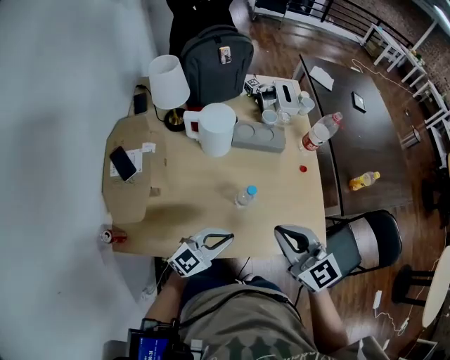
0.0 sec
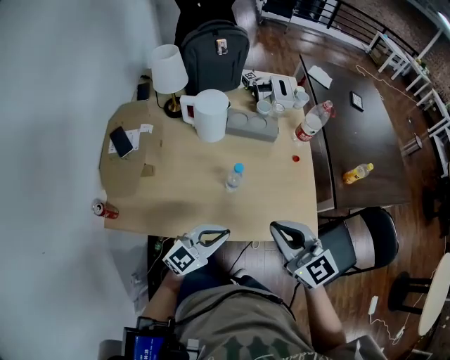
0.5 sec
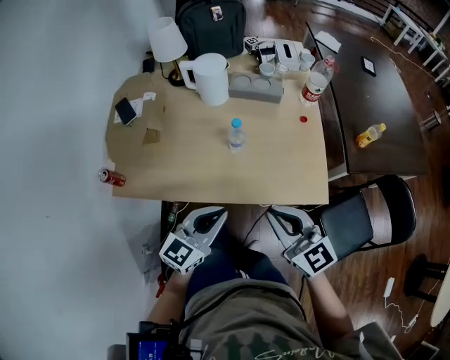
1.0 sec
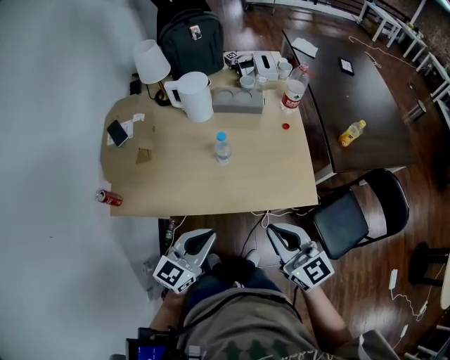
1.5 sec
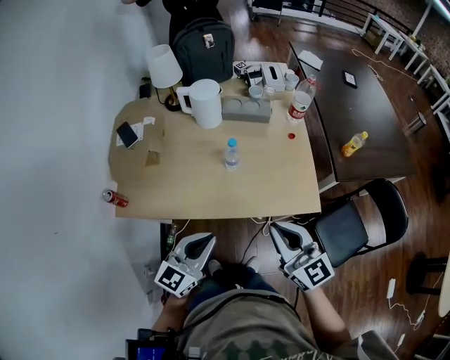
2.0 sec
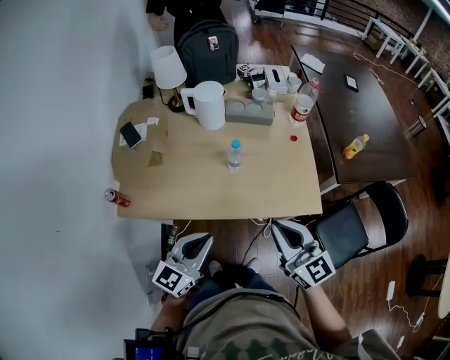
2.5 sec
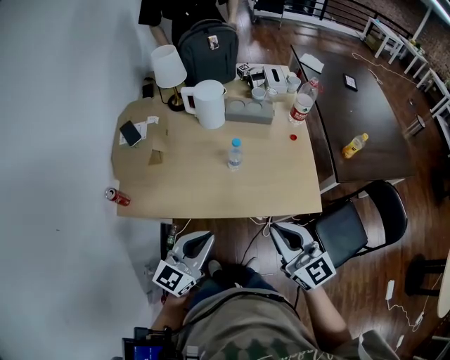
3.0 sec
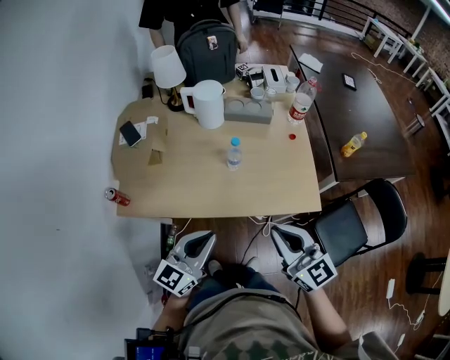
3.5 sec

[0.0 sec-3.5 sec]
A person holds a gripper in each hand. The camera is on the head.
0.0 sec to 2.0 sec: The right gripper travels backward and to the right by some 20 cm; the left gripper goes roughly 20 cm backward and upward, and rotates approximately 30 degrees.
2.0 sec to 3.5 sec: The grippers move only a little.

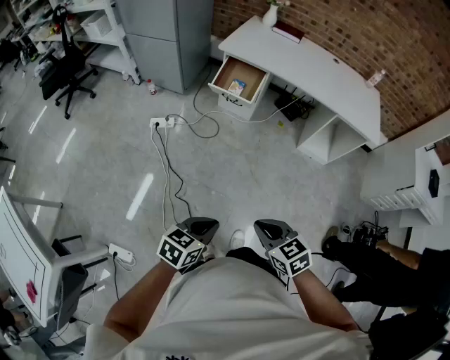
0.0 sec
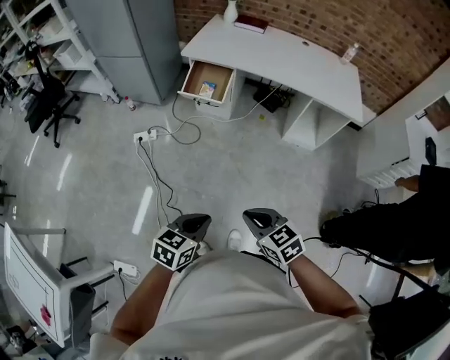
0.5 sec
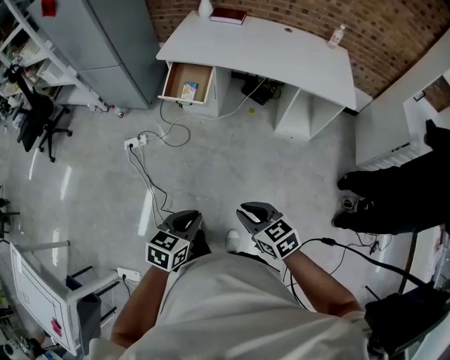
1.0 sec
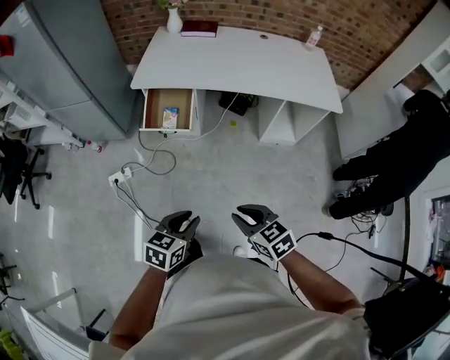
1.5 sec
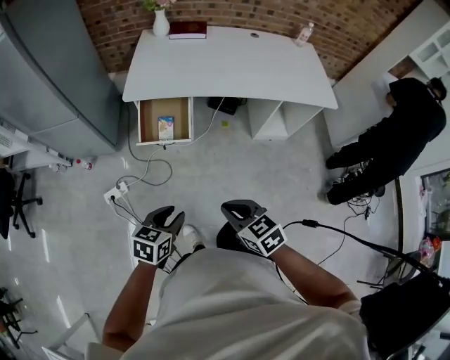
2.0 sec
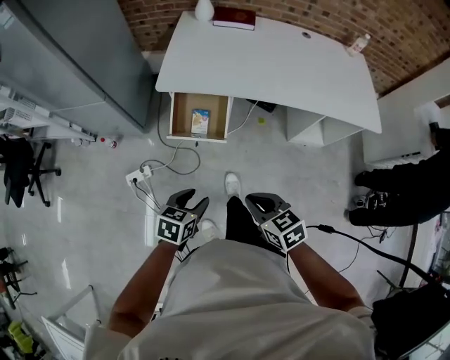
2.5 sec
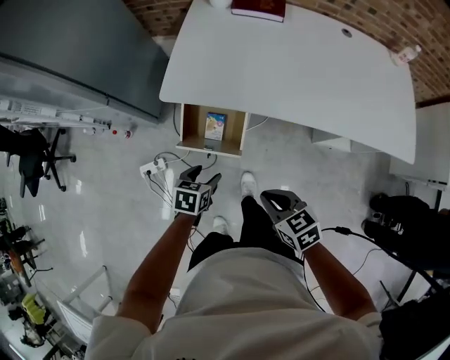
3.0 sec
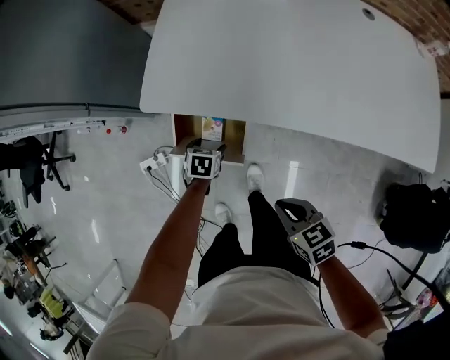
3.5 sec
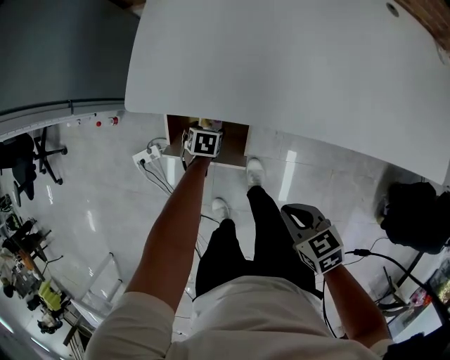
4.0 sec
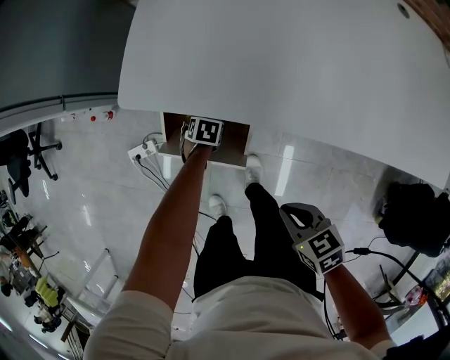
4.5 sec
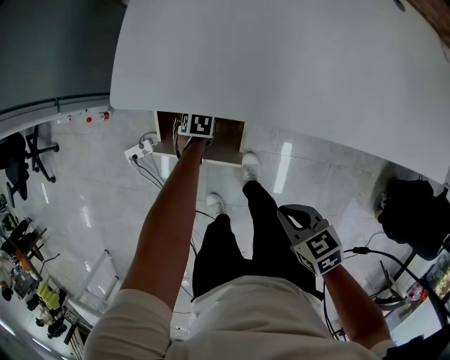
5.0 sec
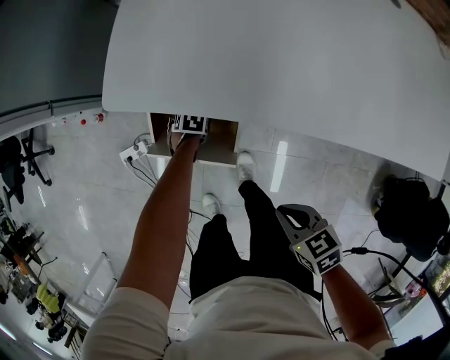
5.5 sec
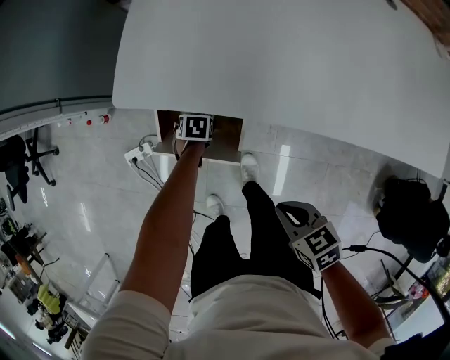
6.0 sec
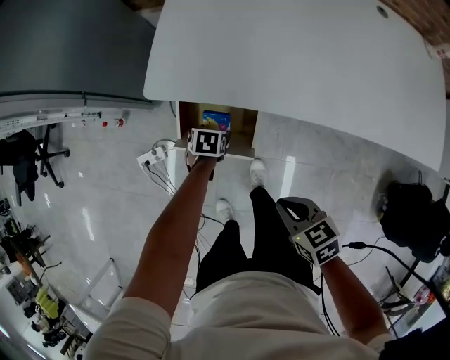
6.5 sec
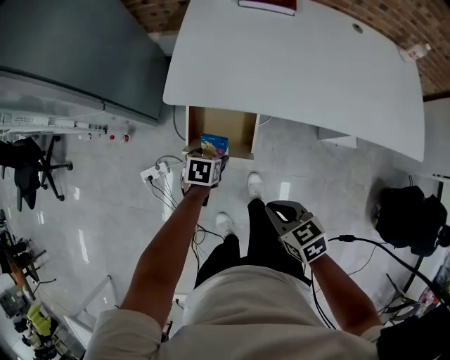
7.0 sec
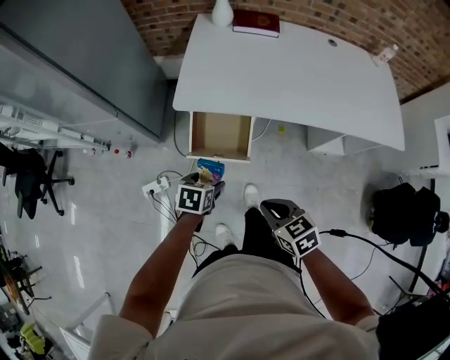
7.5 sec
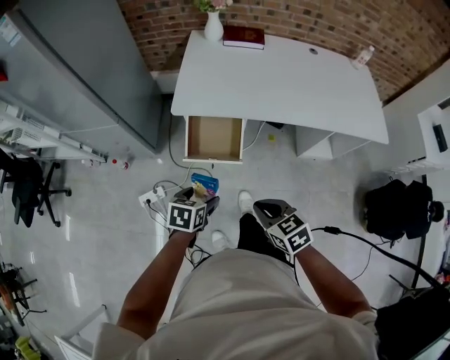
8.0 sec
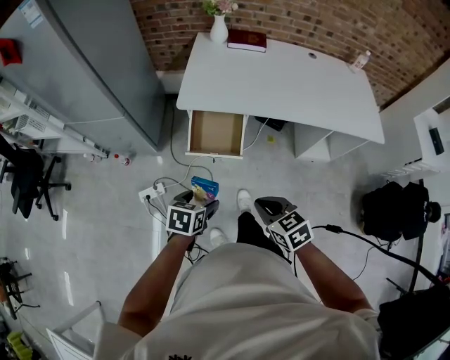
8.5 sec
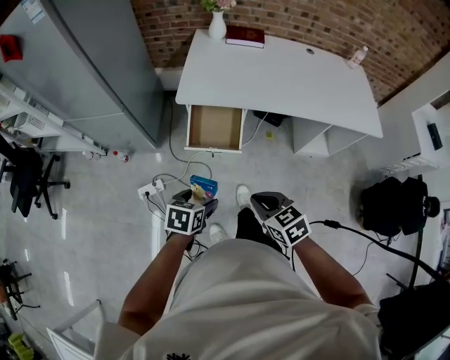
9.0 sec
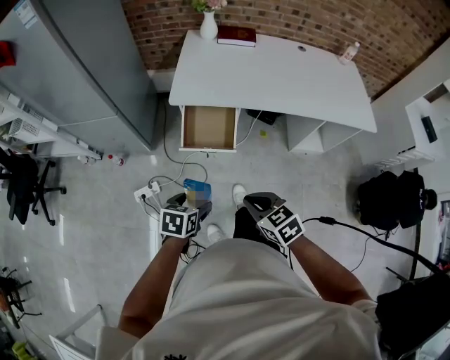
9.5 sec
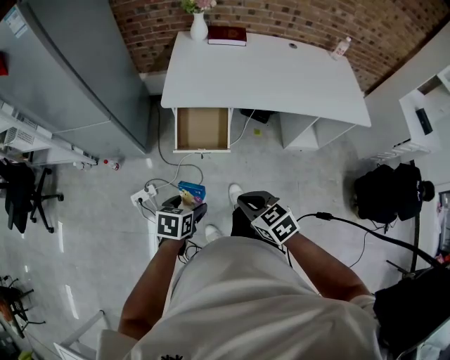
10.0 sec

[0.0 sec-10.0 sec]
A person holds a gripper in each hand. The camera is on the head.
0.0 sec to 2.0 sec: The two grippers travel together, forward, roughly 40 cm.
2.0 sec to 4.0 sec: Both grippers are carried approximately 50 cm. The right gripper changes its angle by roughly 20 degrees; the left gripper tilts its fingers approximately 40 degrees downward, and opens.
6.0 sec to 8.0 sec: The left gripper travels upward by roughly 40 cm, and changes its angle by approximately 30 degrees; the right gripper ends up roughly 35 cm from where it was, and rotates roughly 20 degrees.
8.0 sec to 10.0 sec: The two grippers go some 10 cm backward.

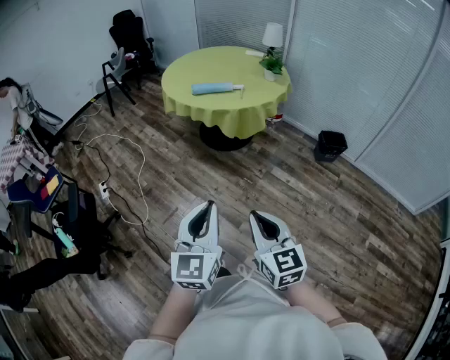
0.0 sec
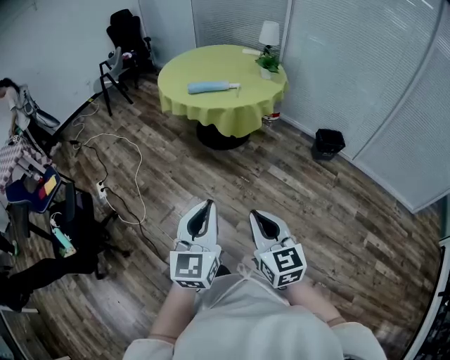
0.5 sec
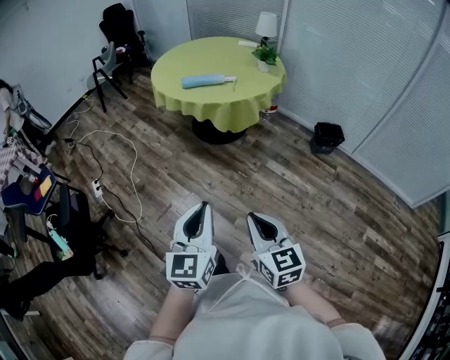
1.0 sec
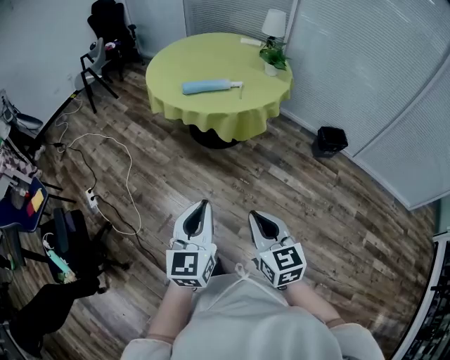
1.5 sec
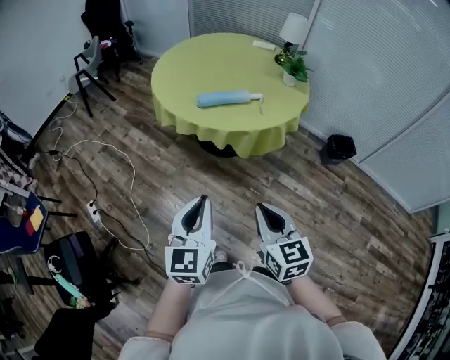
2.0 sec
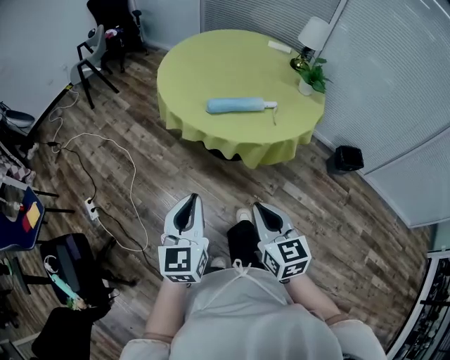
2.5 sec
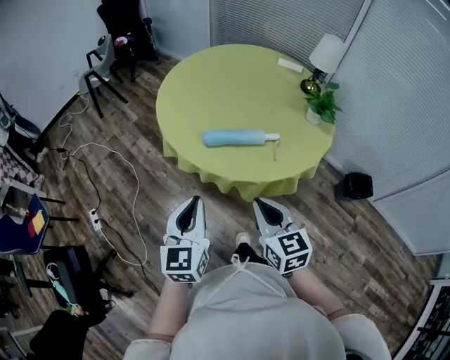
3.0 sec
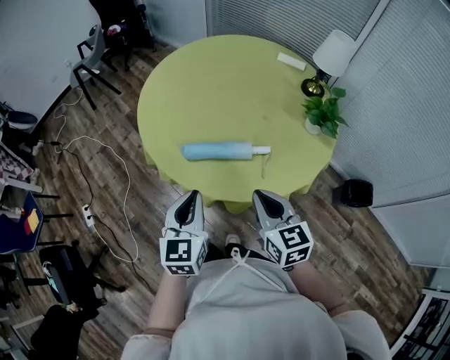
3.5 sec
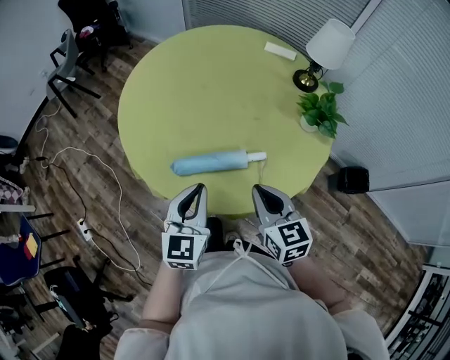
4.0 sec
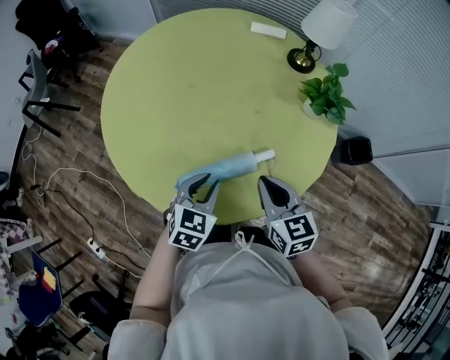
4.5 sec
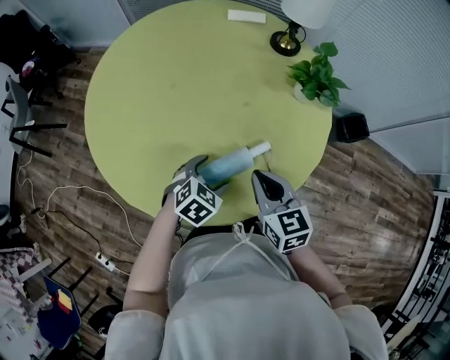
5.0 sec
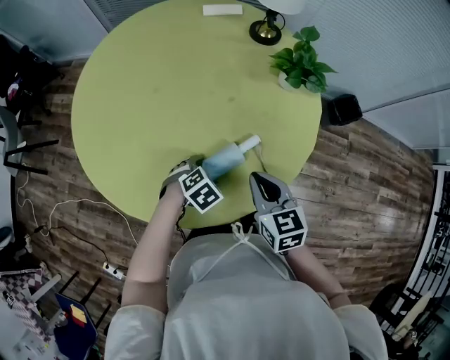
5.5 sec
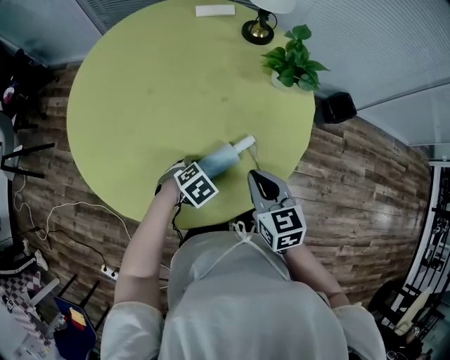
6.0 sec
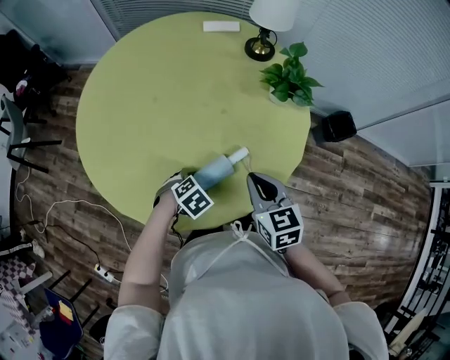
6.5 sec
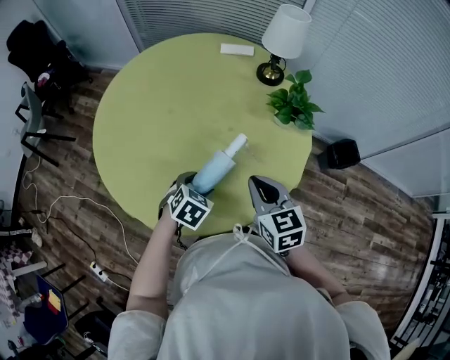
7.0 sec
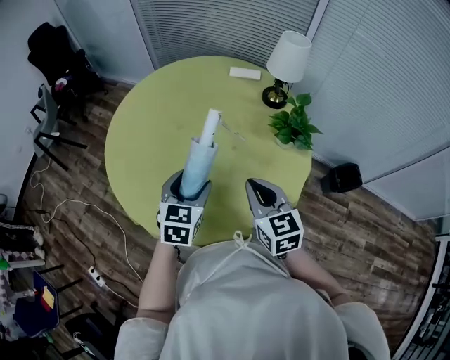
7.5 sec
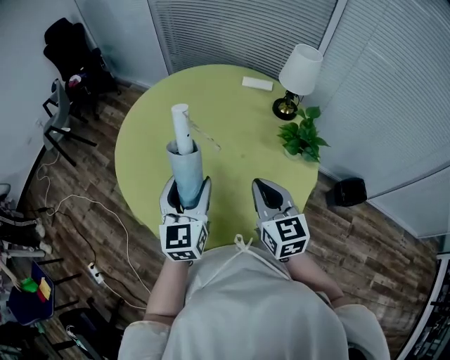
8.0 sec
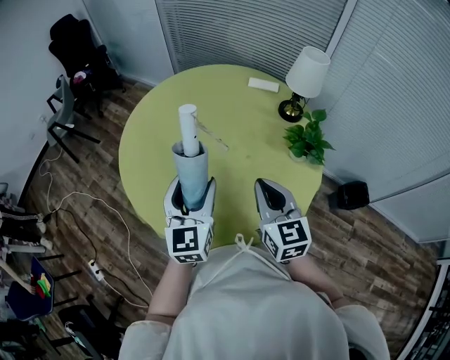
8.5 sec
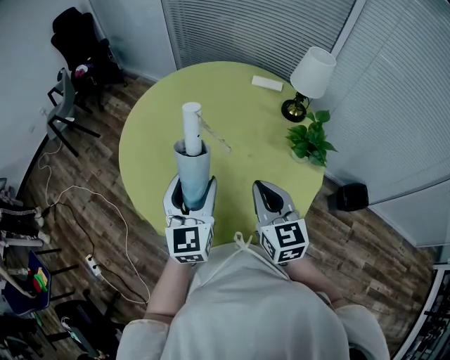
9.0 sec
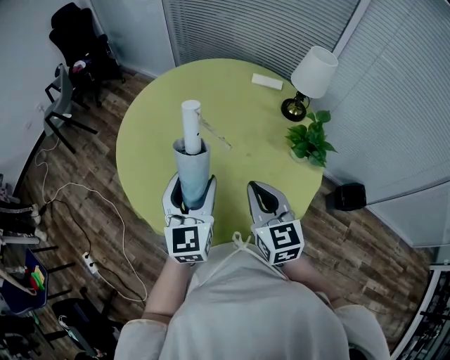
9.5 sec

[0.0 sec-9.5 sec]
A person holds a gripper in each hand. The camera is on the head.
0.0 sec to 2.0 sec: The right gripper heads forward, covering about 35 cm. Meanwhile the left gripper moves forward and to the left, about 40 cm.
2.0 sec to 4.0 sec: The pair of grippers is taken forward, roughly 50 cm.
4.0 sec to 5.5 sec: The left gripper travels downward by some 25 cm, tilts its fingers about 60 degrees downward, and opens its fingers. Meanwhile the right gripper heads downward, covering about 10 cm, and rotates roughly 30 degrees.
5.5 sec to 7.5 sec: The left gripper is displaced upward by some 25 cm, and angles its fingers upward, by approximately 40 degrees. Meanwhile the right gripper goes about 15 cm upward, and changes its angle by approximately 20 degrees.
7.5 sec to 9.5 sec: The left gripper travels upward by about 10 cm, and changes its angle by some 30 degrees.

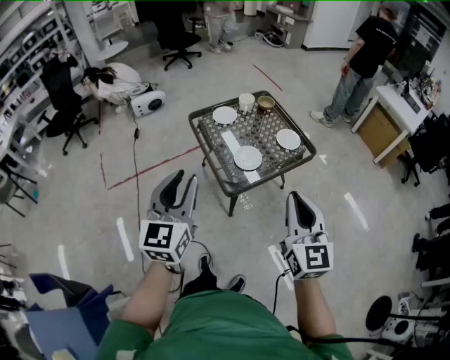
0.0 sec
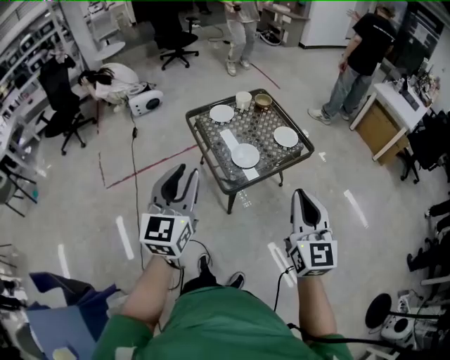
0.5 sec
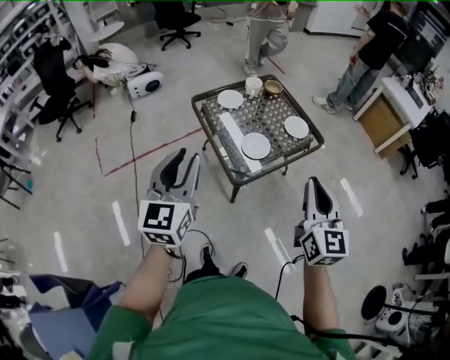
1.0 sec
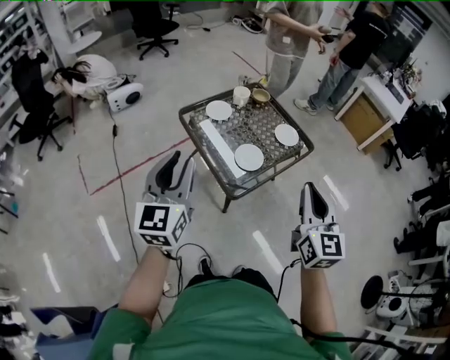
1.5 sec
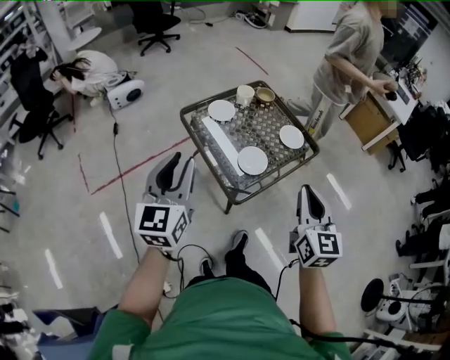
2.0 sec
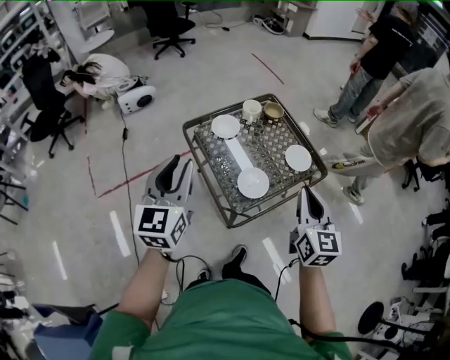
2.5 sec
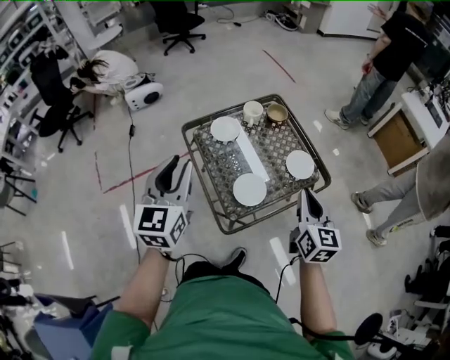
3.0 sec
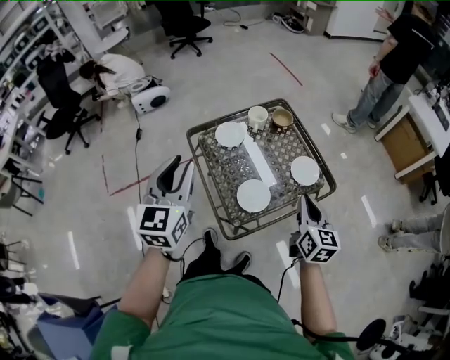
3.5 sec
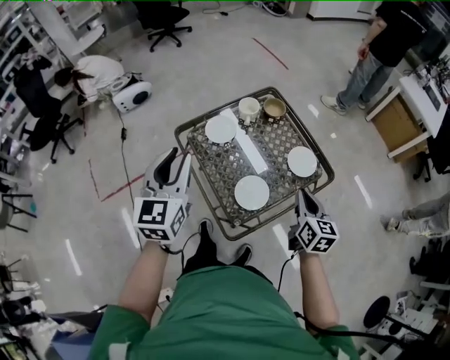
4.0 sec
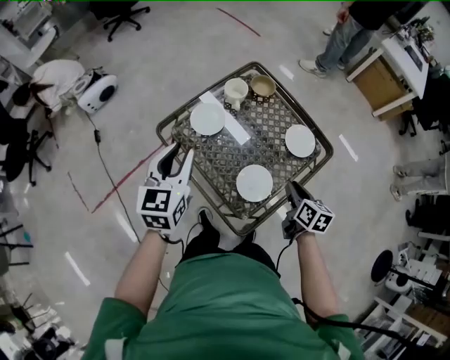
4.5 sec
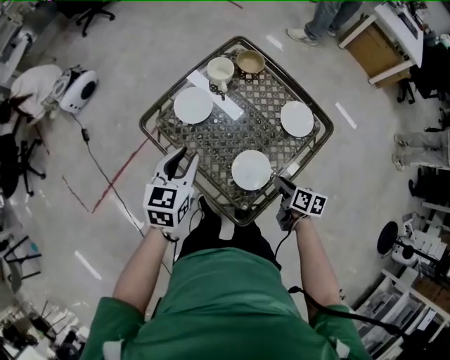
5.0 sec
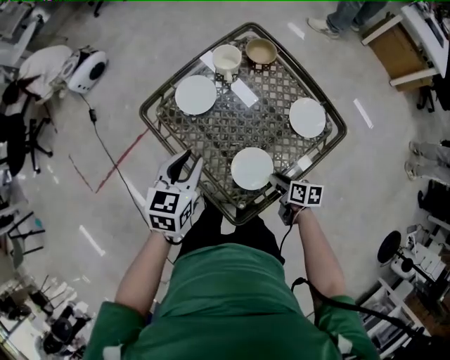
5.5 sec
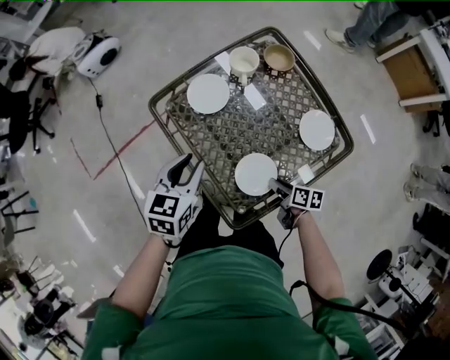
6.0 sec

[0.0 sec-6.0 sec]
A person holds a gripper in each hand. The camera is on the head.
0.0 sec to 2.0 sec: Both grippers travel together forward and to the left, approximately 15 cm.
2.0 sec to 4.0 sec: The left gripper goes approximately 25 cm forward, while the right gripper is displaced forward, downward and to the right by some 30 cm, and rotates roughly 20 degrees.
4.0 sec to 6.0 sec: Both grippers travel together downward, roughly 25 cm. The left gripper rotates roughly 30 degrees. Meanwhile the right gripper turns by some 50 degrees.
